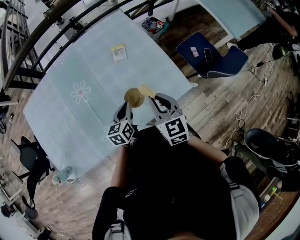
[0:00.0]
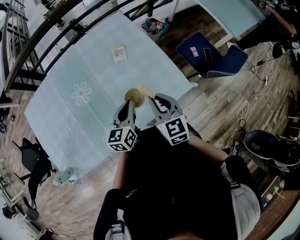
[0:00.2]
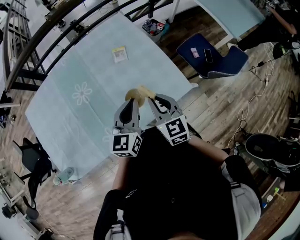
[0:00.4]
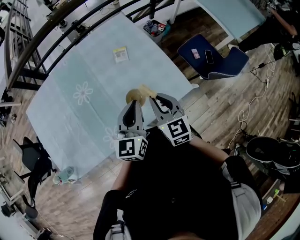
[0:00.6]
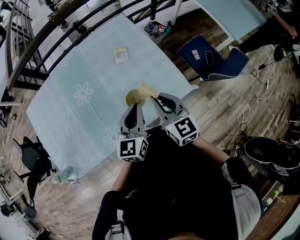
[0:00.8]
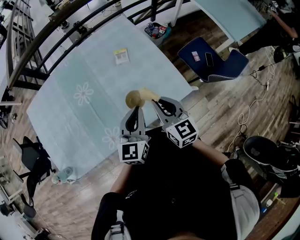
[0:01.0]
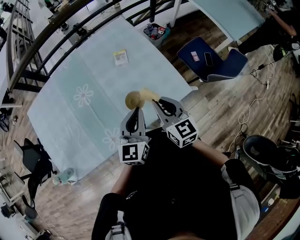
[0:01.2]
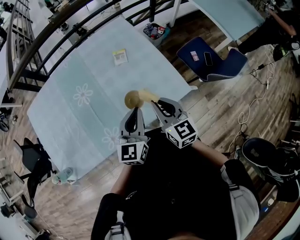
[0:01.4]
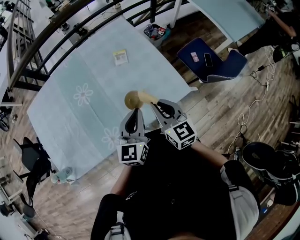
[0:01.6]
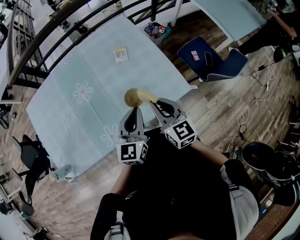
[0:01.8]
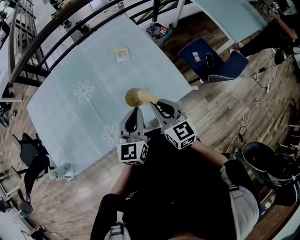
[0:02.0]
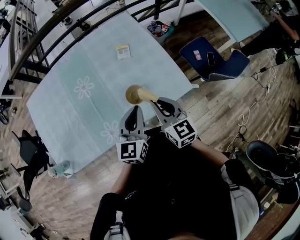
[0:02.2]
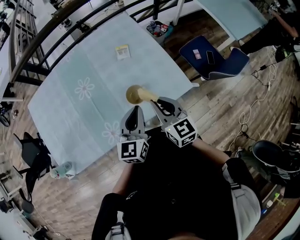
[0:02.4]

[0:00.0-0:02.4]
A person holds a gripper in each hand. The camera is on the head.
0:00.0 to 0:01.2: The left gripper is displaced upward by approximately 15 cm, and rotates about 30 degrees.
0:01.2 to 0:02.4: The grippers stay close to where they were, moving slightly.

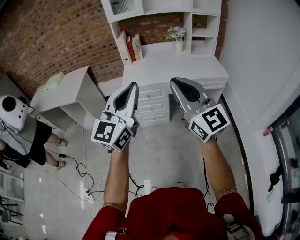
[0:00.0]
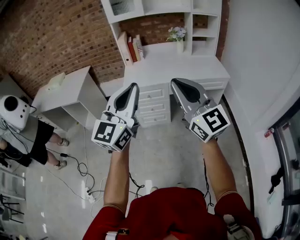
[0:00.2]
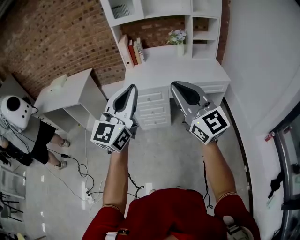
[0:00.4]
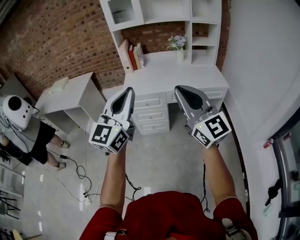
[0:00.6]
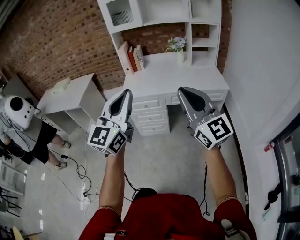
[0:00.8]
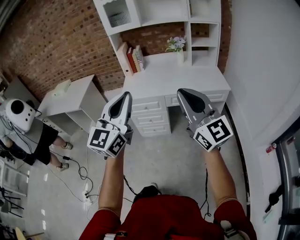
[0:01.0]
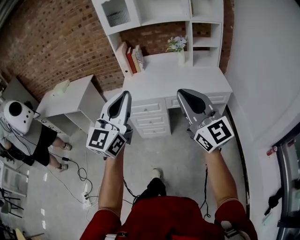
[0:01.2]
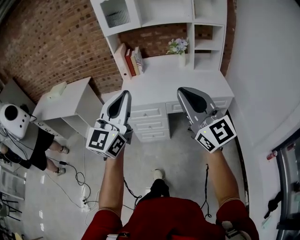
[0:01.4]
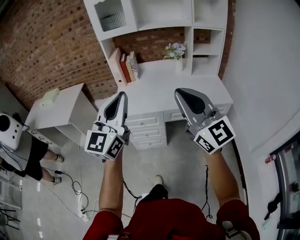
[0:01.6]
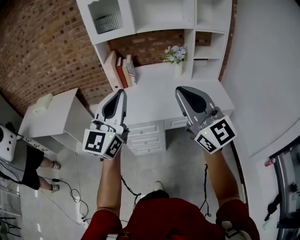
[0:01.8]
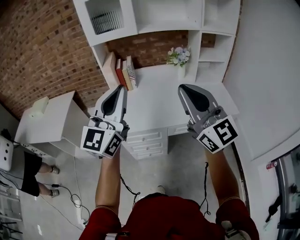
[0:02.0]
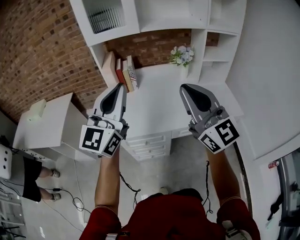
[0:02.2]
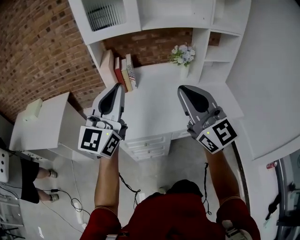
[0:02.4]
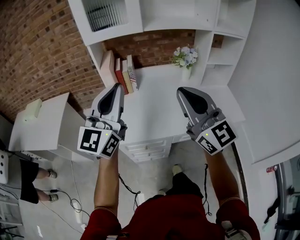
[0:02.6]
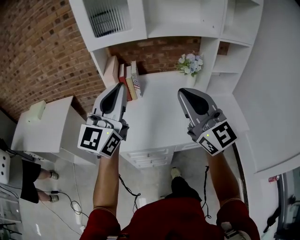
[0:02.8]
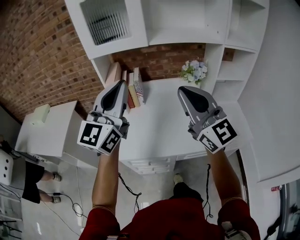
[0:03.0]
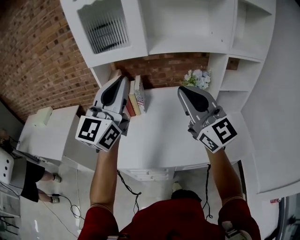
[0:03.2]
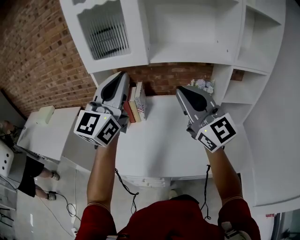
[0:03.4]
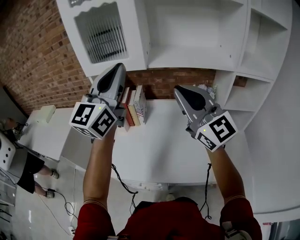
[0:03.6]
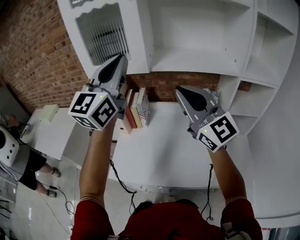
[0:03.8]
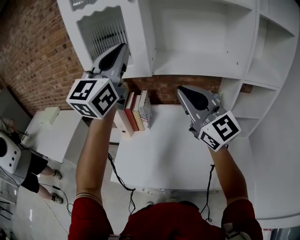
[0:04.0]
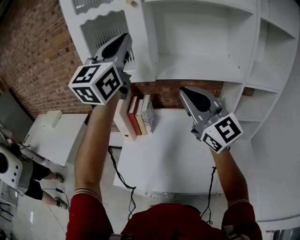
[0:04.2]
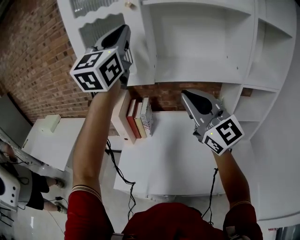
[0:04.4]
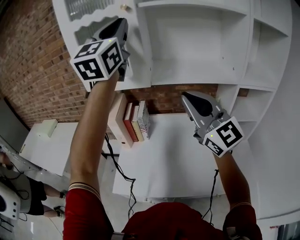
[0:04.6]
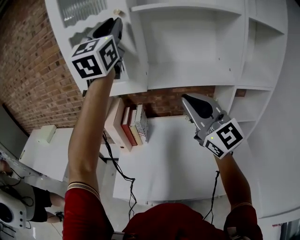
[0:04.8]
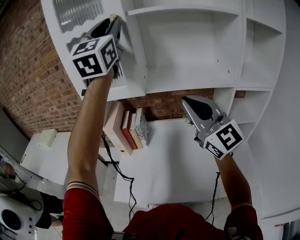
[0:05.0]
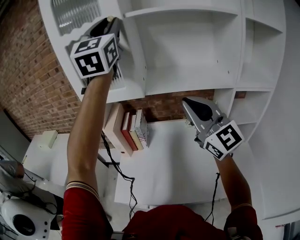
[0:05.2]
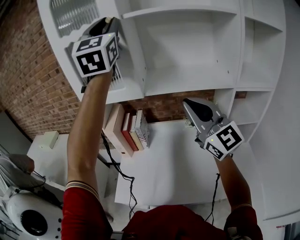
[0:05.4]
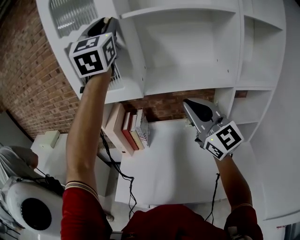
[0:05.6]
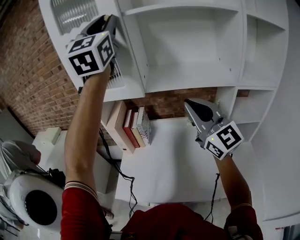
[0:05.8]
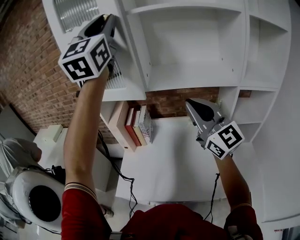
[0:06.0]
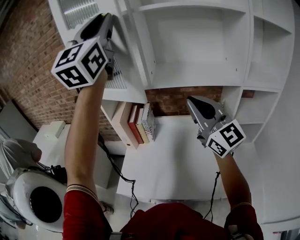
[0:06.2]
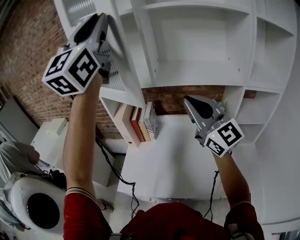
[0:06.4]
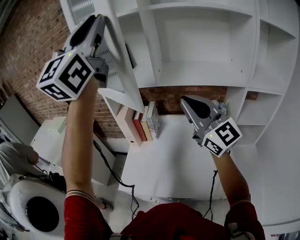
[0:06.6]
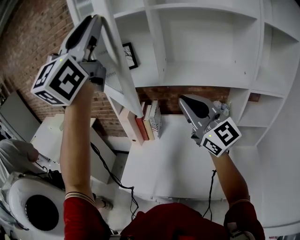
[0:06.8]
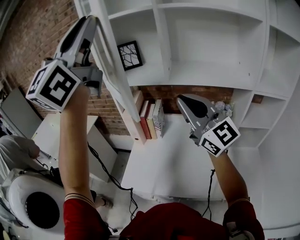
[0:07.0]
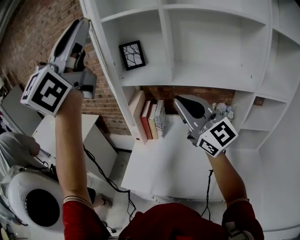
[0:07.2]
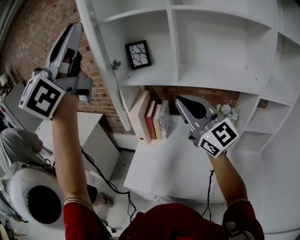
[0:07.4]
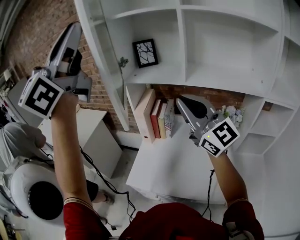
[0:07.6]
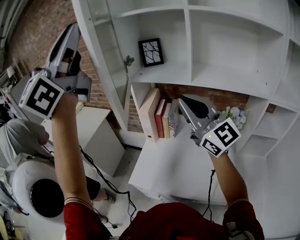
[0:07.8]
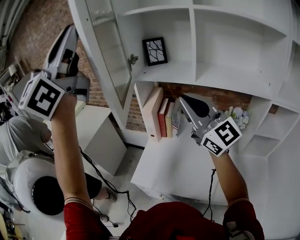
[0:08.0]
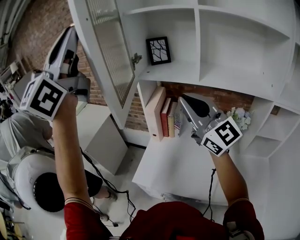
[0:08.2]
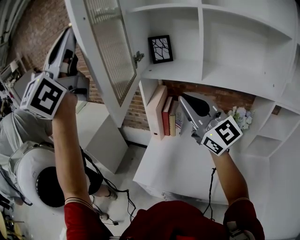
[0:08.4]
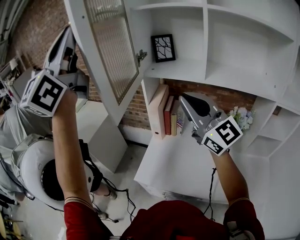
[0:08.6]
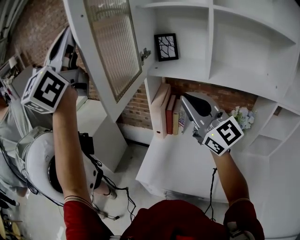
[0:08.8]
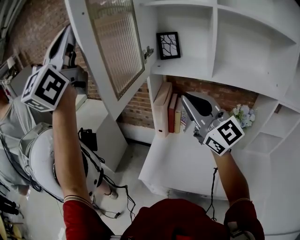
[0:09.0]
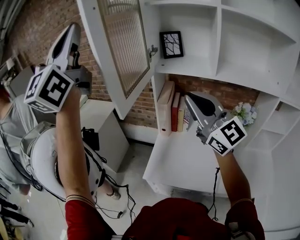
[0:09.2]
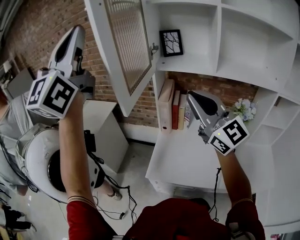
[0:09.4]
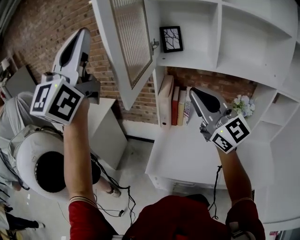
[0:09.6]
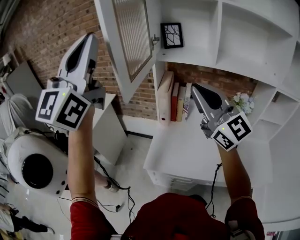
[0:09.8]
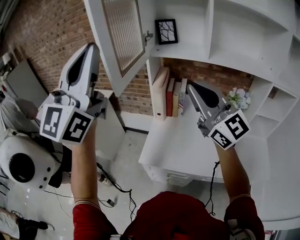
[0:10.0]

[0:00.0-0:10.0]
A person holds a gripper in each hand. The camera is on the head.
0:00.0 to 0:01.4: The left gripper moves forward and to the right, roughly 15 cm, while the right gripper goes approximately 15 cm to the right and forward.
0:01.4 to 0:02.8: Both grippers move forward, about 40 cm.
0:02.8 to 0:04.2: The left gripper goes roughly 35 cm forward, upward and to the right. Meanwhile the right gripper heads forward, covering about 20 cm.
0:04.2 to 0:05.8: The left gripper travels upward and forward by approximately 10 cm. Meanwhile the right gripper travels to the right by roughly 5 cm.
0:05.8 to 0:07.2: The right gripper shifts about 10 cm to the left; the left gripper travels backward and to the left by about 20 cm.
0:07.2 to 0:08.6: The left gripper heads to the left, covering approximately 10 cm; the right gripper moves to the left, roughly 5 cm.
0:08.6 to 0:10.0: The right gripper moves backward and to the left, about 10 cm; the left gripper goes approximately 15 cm downward, backward and to the left.

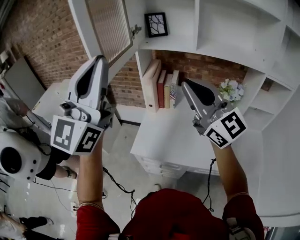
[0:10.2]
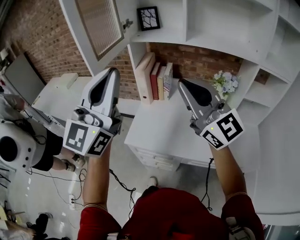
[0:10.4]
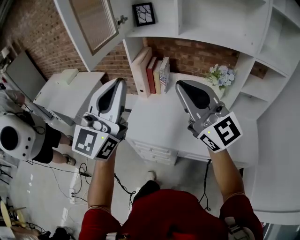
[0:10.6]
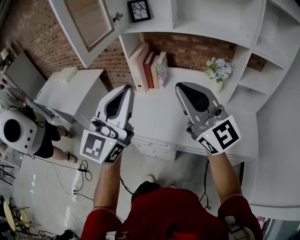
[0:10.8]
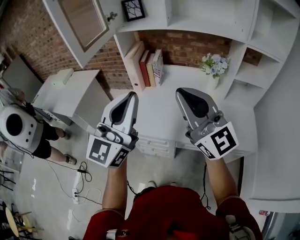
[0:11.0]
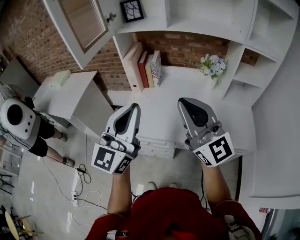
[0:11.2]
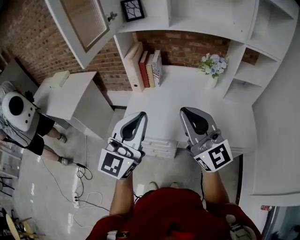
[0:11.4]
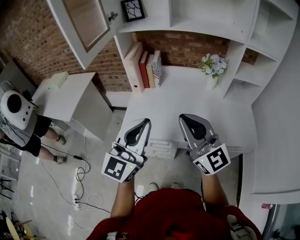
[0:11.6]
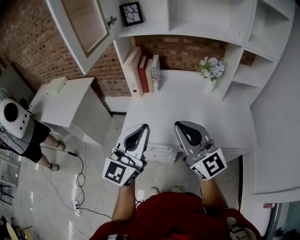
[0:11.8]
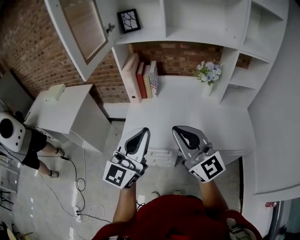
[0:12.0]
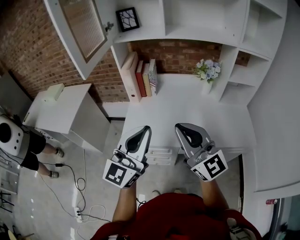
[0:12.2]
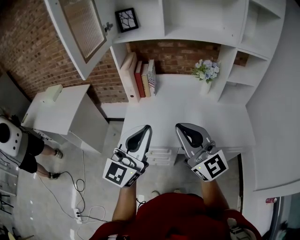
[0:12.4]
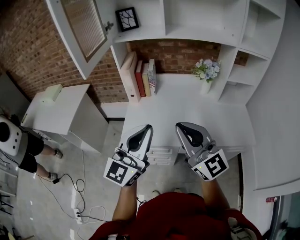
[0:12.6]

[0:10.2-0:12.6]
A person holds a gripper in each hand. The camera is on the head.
0:10.2 to 0:11.4: The left gripper shifts some 30 cm downward, to the right and backward, and swivels some 20 degrees, while the right gripper is displaced backward, downward and to the right by roughly 20 cm.
0:11.4 to 0:12.6: The right gripper changes place by some 5 cm.

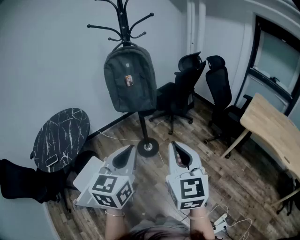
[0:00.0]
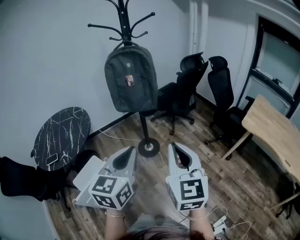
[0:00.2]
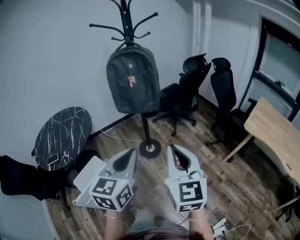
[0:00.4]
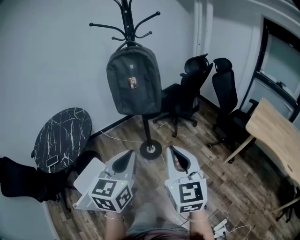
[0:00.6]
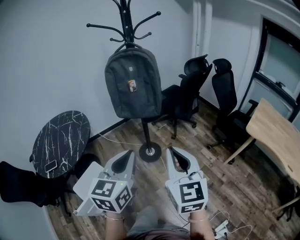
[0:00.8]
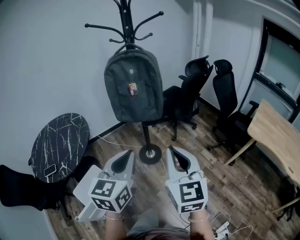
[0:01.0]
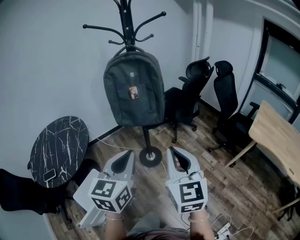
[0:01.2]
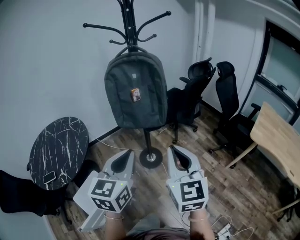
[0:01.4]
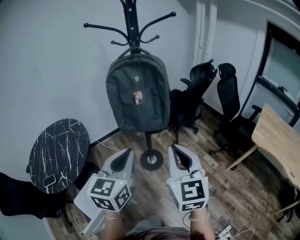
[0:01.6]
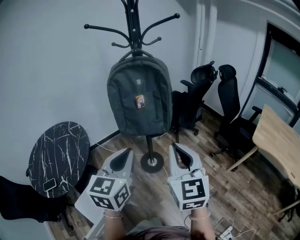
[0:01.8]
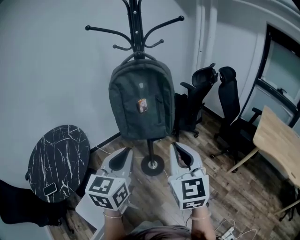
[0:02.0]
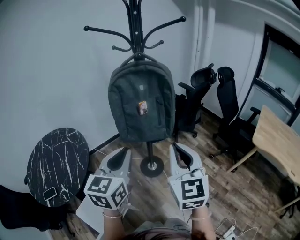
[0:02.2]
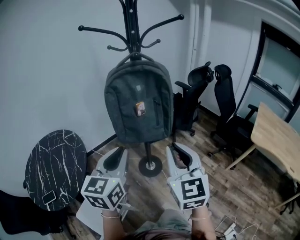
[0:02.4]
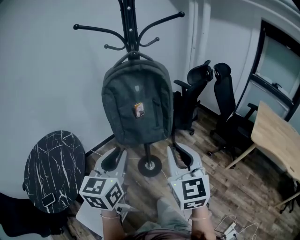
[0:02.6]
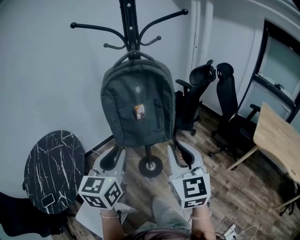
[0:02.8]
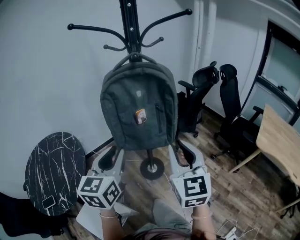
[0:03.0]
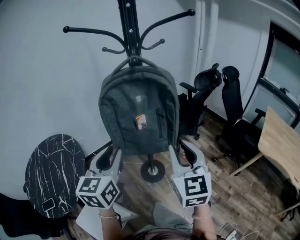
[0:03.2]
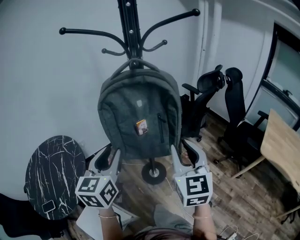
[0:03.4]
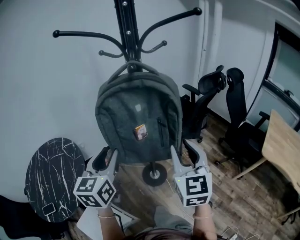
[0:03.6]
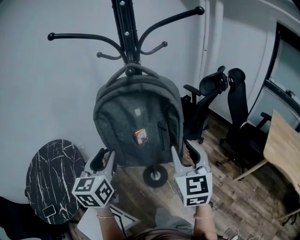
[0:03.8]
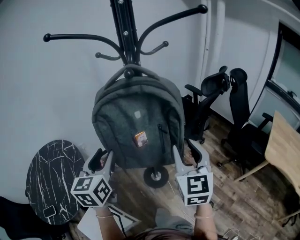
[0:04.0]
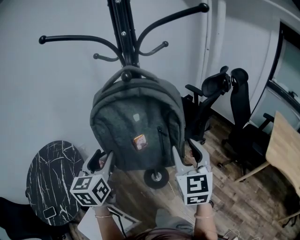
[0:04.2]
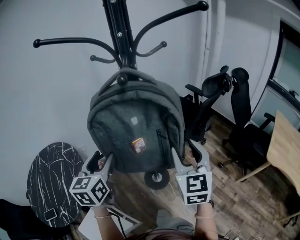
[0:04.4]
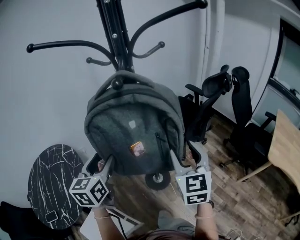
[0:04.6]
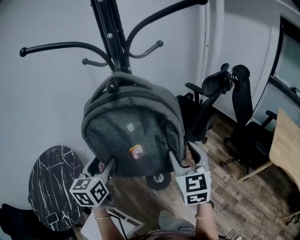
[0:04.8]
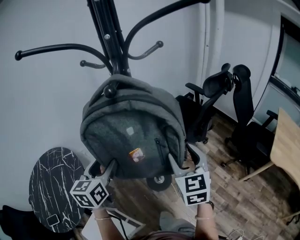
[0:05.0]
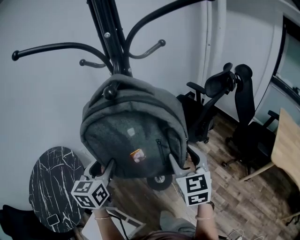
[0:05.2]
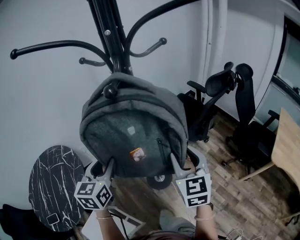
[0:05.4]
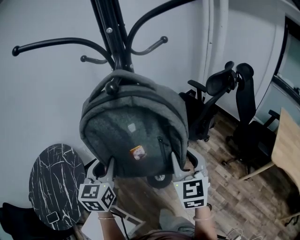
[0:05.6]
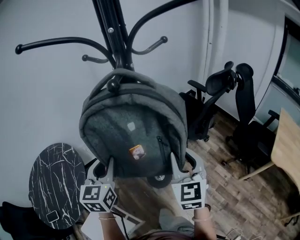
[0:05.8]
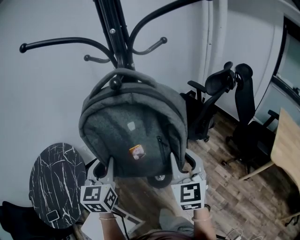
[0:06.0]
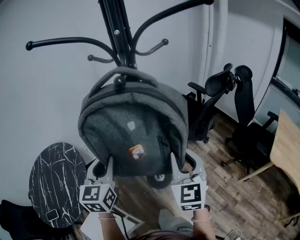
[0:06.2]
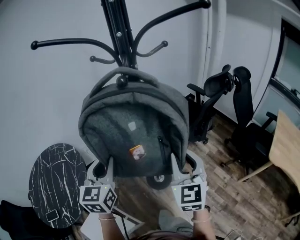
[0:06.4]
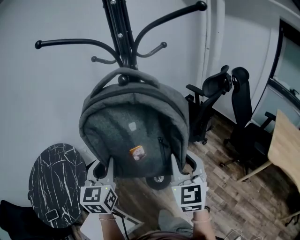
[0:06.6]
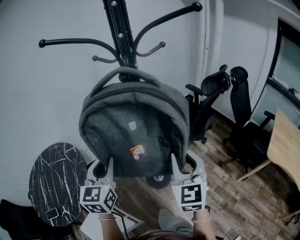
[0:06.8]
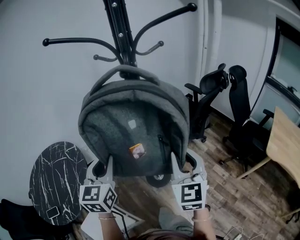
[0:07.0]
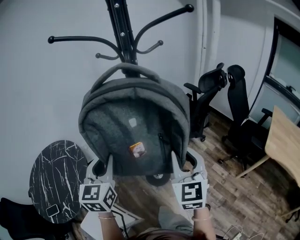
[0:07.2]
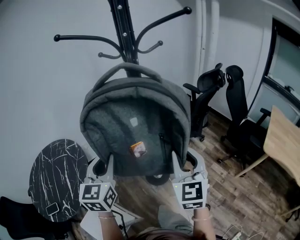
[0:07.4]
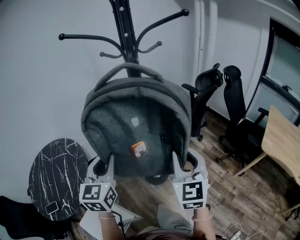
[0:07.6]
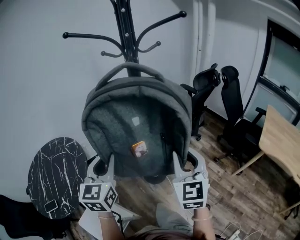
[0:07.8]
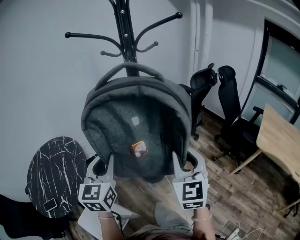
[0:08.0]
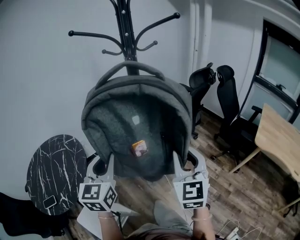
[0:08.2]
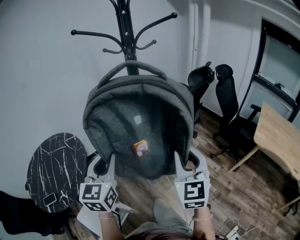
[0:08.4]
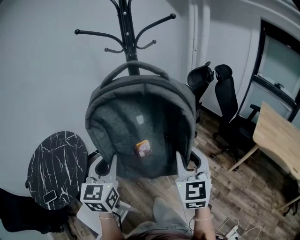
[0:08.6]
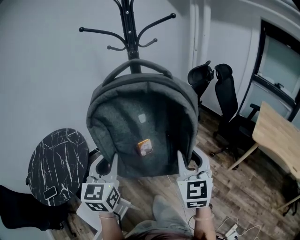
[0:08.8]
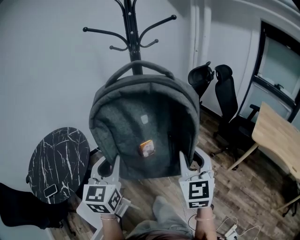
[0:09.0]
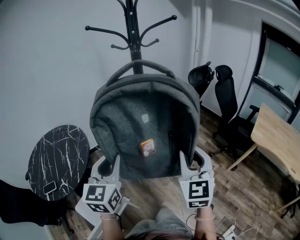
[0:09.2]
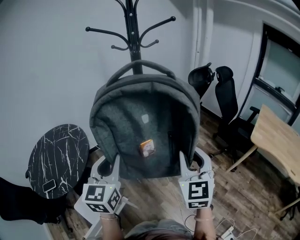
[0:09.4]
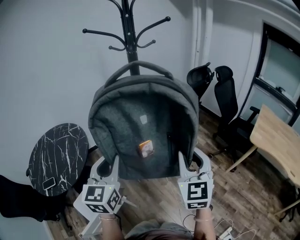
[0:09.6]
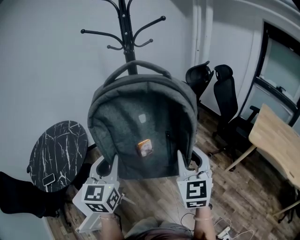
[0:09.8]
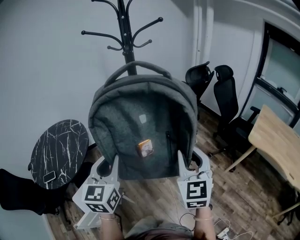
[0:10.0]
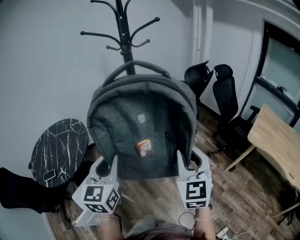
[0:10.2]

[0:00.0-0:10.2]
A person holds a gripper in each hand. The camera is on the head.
0:00.0 to 0:01.4: The left gripper moves forward and to the left, roughly 15 cm; the right gripper shifts some 15 cm forward.
0:01.4 to 0:03.0: The left gripper travels forward and to the left by roughly 20 cm, and opens. The right gripper is displaced forward by some 15 cm, and opens up.
0:03.0 to 0:04.4: The two grippers go some 15 cm forward. The left gripper opens its fingers. The right gripper opens.
0:04.4 to 0:05.8: The right gripper closes up. Meanwhile the left gripper closes.
0:05.8 to 0:07.2: The grippers both shift backward by some 10 cm.
0:07.2 to 0:08.8: The two grippers go some 15 cm backward.
0:08.8 to 0:10.2: The right gripper moves to the right and backward, about 10 cm, while the left gripper shifts approximately 10 cm backward and to the right.
